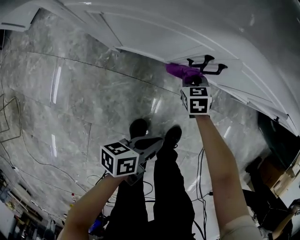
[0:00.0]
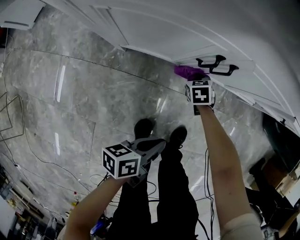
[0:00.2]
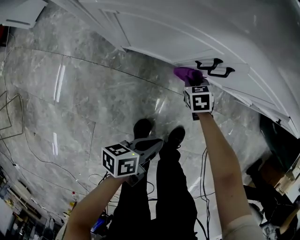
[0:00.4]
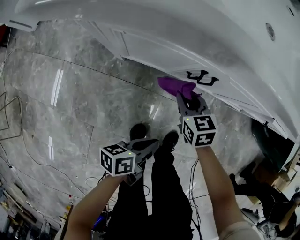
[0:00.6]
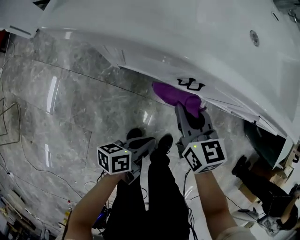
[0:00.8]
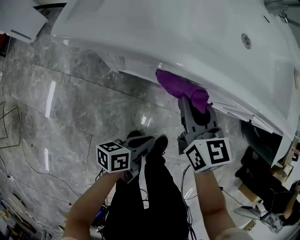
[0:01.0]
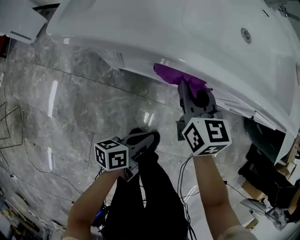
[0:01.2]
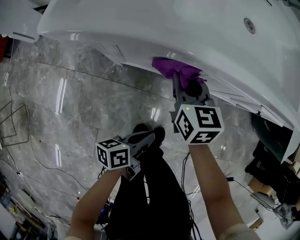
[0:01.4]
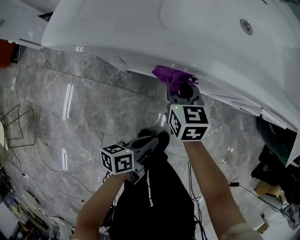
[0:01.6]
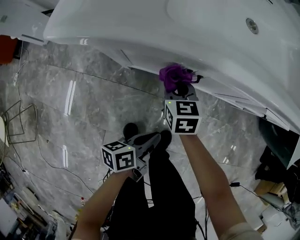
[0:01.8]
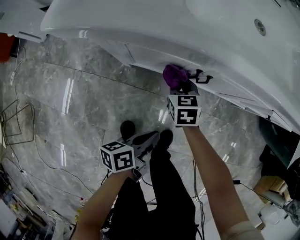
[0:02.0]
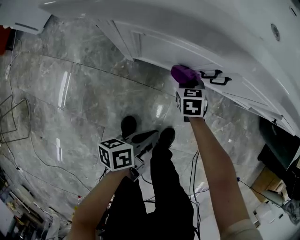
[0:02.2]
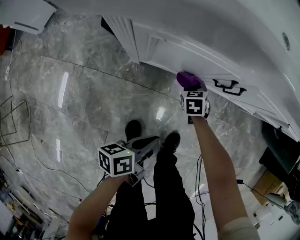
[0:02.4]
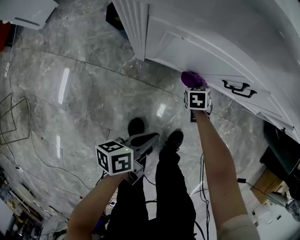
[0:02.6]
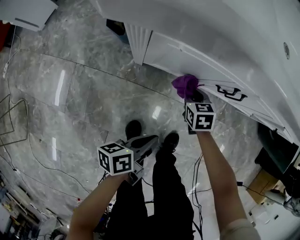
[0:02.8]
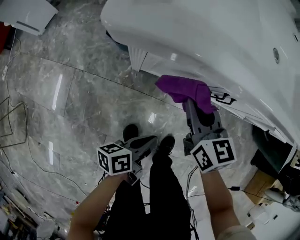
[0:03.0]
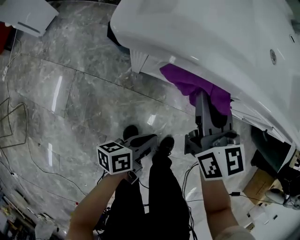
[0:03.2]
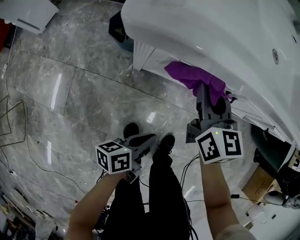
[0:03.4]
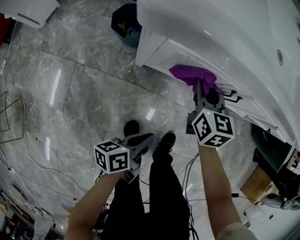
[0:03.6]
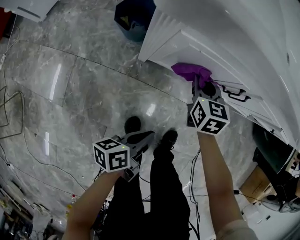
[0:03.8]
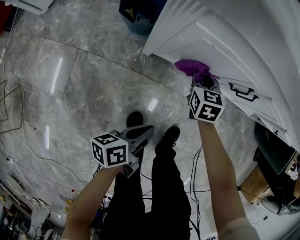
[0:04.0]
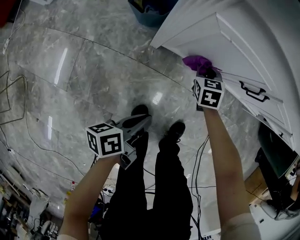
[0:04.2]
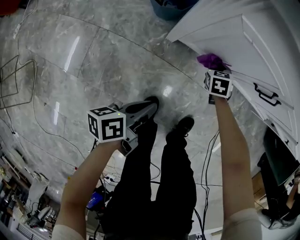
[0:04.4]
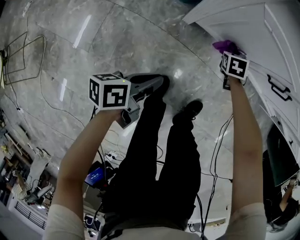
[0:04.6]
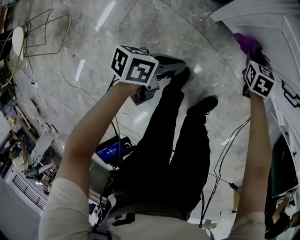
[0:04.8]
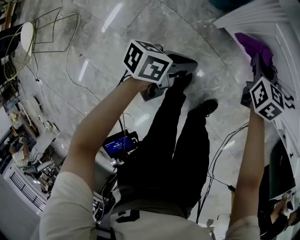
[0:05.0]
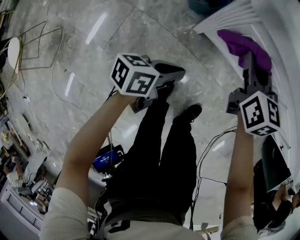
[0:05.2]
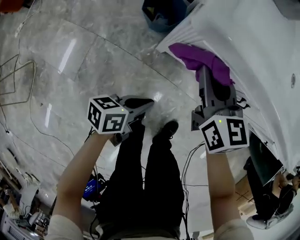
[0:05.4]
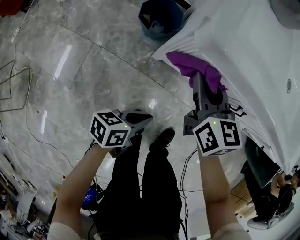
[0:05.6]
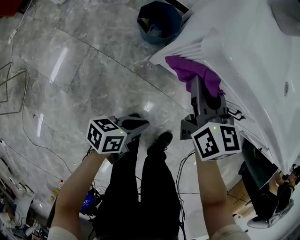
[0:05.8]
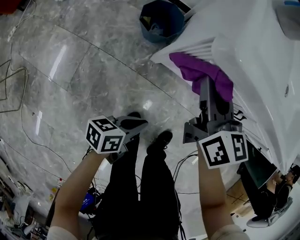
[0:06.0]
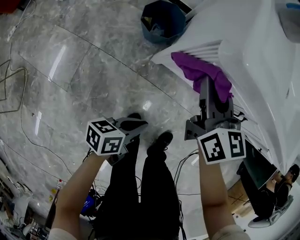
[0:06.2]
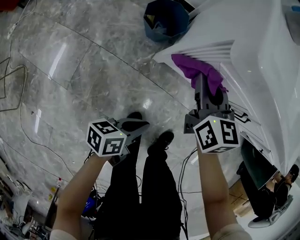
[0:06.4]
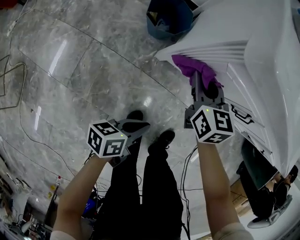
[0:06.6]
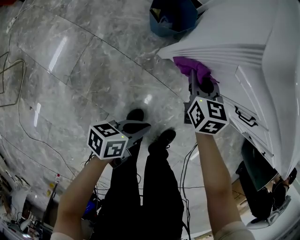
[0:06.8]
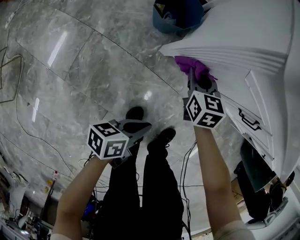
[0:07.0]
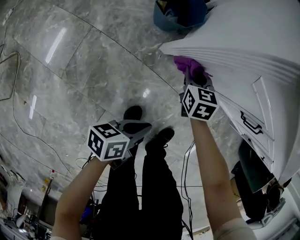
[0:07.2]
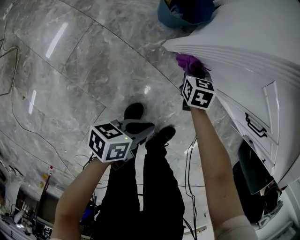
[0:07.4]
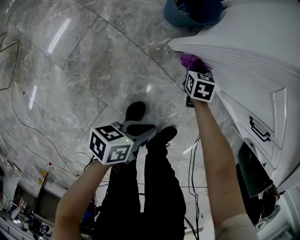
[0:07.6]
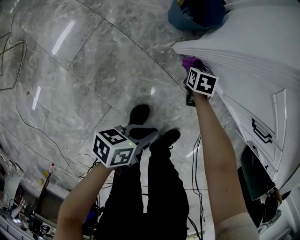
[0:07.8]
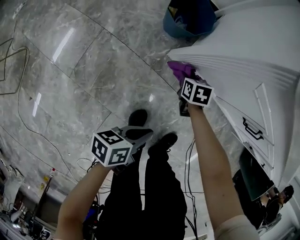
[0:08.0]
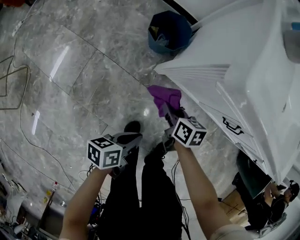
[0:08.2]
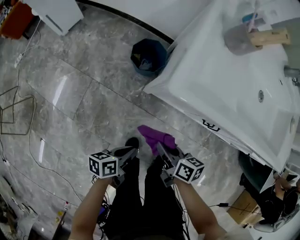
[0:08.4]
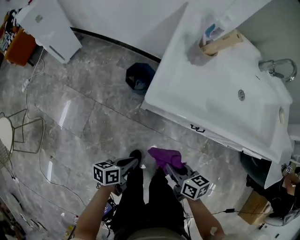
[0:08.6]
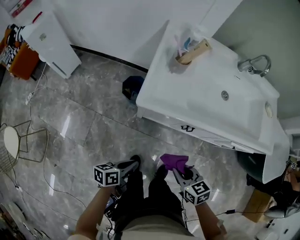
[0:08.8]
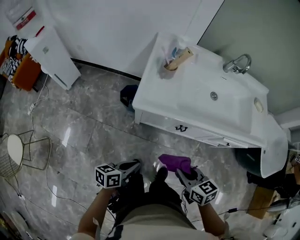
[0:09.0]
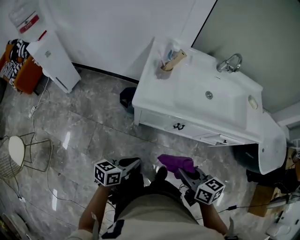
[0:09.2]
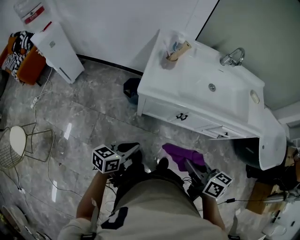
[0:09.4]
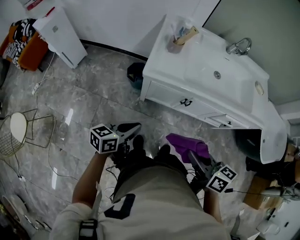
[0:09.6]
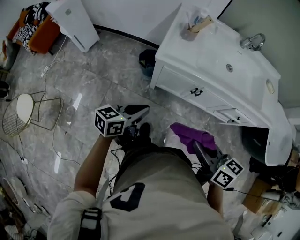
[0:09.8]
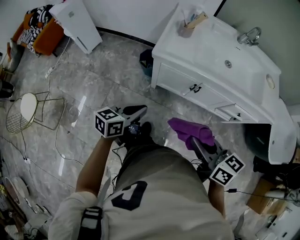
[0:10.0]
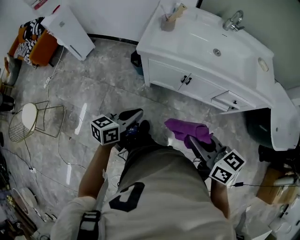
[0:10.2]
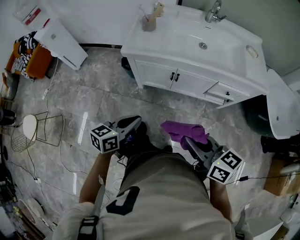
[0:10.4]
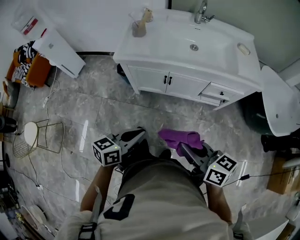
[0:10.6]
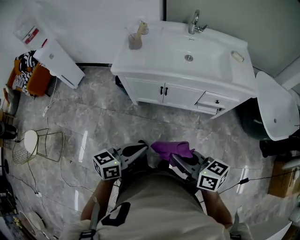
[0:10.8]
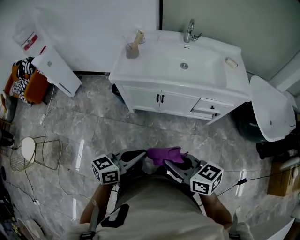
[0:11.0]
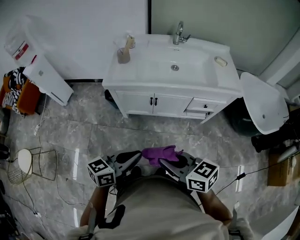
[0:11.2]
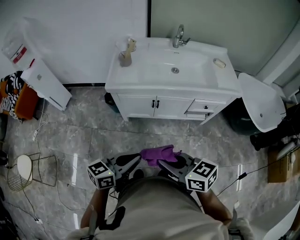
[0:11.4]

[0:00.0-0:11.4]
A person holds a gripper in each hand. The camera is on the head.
0:00.0 to 0:01.4: The left gripper shifts some 10 cm upward, while the right gripper swings up and down, roughly 40 cm each way, with 2 reversals, and turns by about 30 degrees.
0:01.4 to 0:02.8: The right gripper travels downward by about 25 cm, and rotates about 30 degrees; the left gripper shifts roughly 10 cm to the left and downward.
0:02.8 to 0:04.2: The left gripper heads to the left, covering about 10 cm; the right gripper is displaced to the left by roughly 5 cm, and goes upward and returns, about 30 cm each way.
0:04.2 to 0:05.6: The right gripper travels upward by some 25 cm, and rotates about 30 degrees; the left gripper travels upward by about 5 cm, and rotates approximately 20 degrees.
0:05.6 to 0:07.2: The right gripper travels downward by roughly 25 cm, and turns by roughly 20 degrees. The left gripper shifts roughly 10 cm downward.
0:07.2 to 0:08.6: The left gripper travels upward by some 20 cm. The right gripper shifts approximately 35 cm upward and backward, and rotates roughly 30 degrees.
0:08.6 to 0:10.0: The right gripper moves upward and backward, some 35 cm, and changes its angle by about 20 degrees. The left gripper travels upward by about 25 cm, and turns by some 30 degrees.
0:10.0 to 0:11.4: The right gripper heads backward, covering roughly 10 cm, and travels to the right and back again, some 15 cm each way. Meanwhile the left gripper heads to the right, backward and upward, covering approximately 25 cm, and turns by approximately 20 degrees.

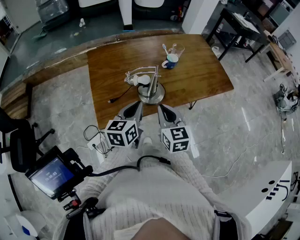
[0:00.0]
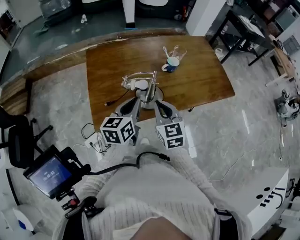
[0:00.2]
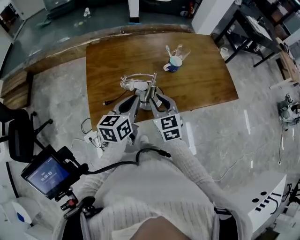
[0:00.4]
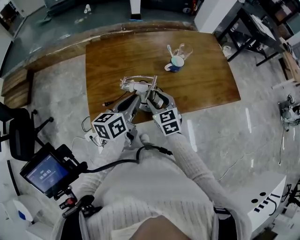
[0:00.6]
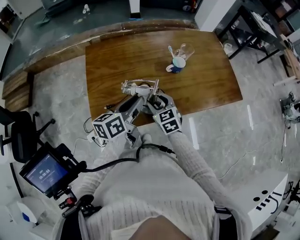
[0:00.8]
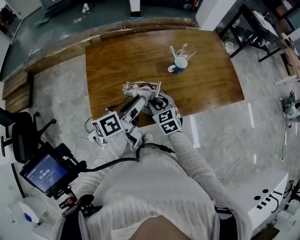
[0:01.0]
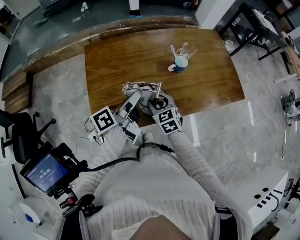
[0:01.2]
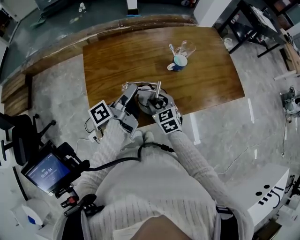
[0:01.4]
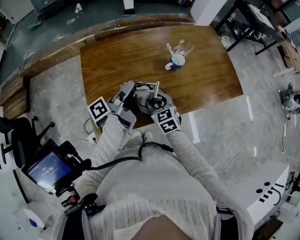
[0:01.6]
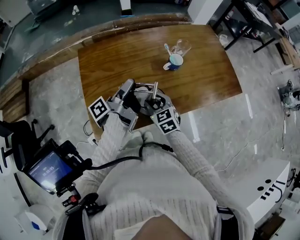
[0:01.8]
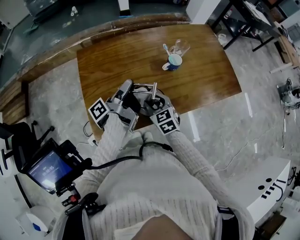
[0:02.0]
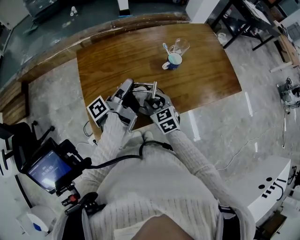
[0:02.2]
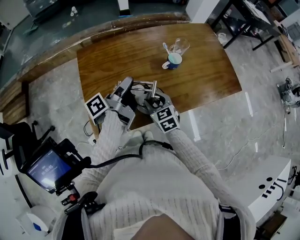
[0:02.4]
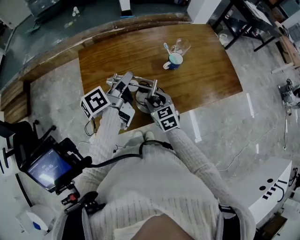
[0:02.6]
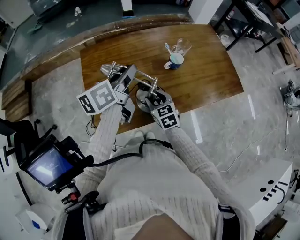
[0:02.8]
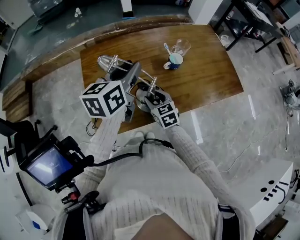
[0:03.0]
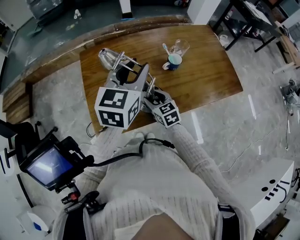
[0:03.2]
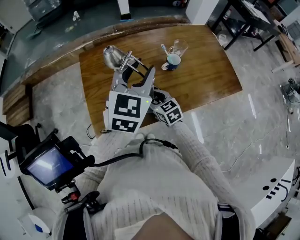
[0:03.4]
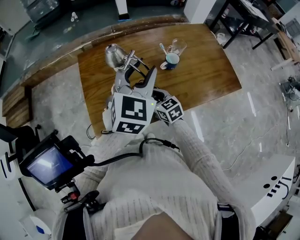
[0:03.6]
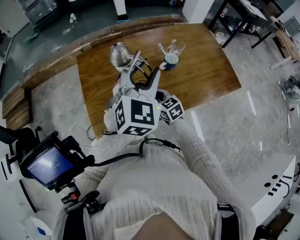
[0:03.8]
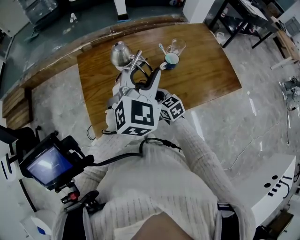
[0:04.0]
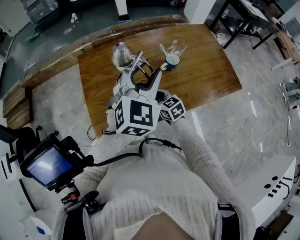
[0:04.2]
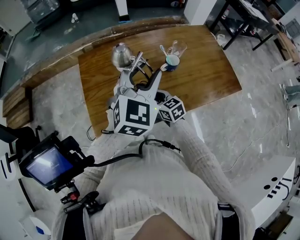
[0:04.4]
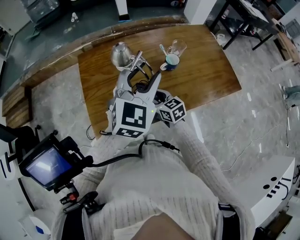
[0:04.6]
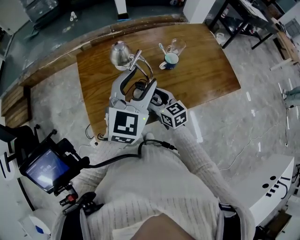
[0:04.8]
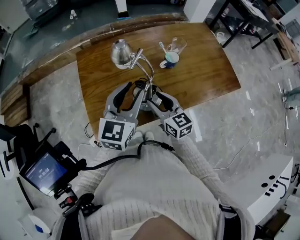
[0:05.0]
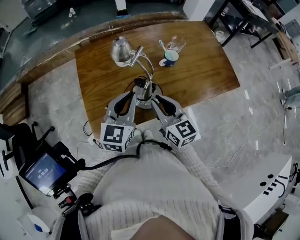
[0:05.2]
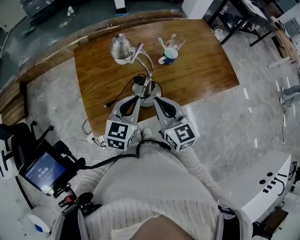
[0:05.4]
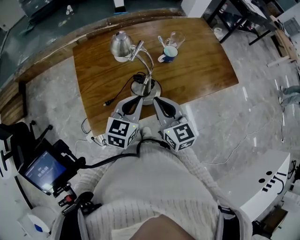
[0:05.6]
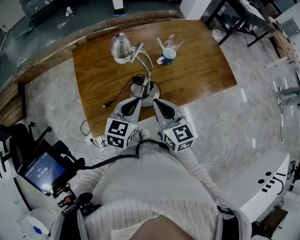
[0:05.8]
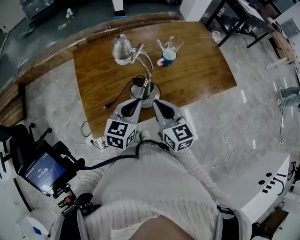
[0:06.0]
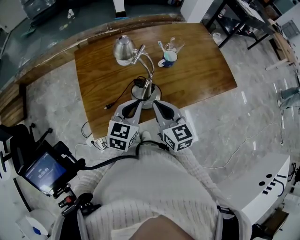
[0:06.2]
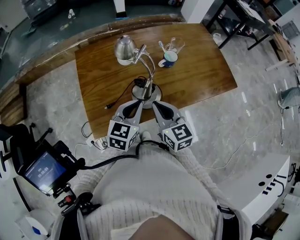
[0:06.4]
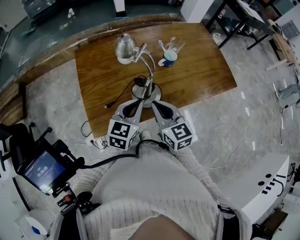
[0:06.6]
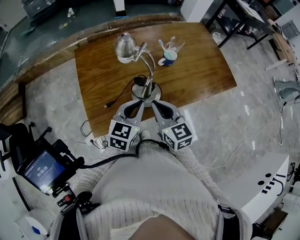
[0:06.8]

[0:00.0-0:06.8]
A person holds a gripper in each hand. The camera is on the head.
0:00.0 to 0:01.4: The left gripper heads forward, covering roughly 15 cm, rolls counterclockwise, seen from behind, by some 60 degrees, and opens up; the right gripper heads forward and downward, covering approximately 20 cm, rotates approximately 20 degrees, and opens its fingers.
0:01.4 to 0:02.8: The left gripper heads upward, covering about 10 cm, and rotates around the line of its fingers by about 40 degrees, clockwise from behind.
0:02.8 to 0:04.0: The left gripper goes approximately 10 cm to the right, upward and backward, and rolls clockwise, seen from behind, by about 70 degrees.
0:04.0 to 0:05.4: The right gripper goes some 15 cm upward and backward, swivels approximately 30 degrees, and closes. Meanwhile the left gripper goes roughly 15 cm downward, turns by approximately 30 degrees, and closes.
0:05.4 to 0:06.8: There are only small adjustments of the grippers.

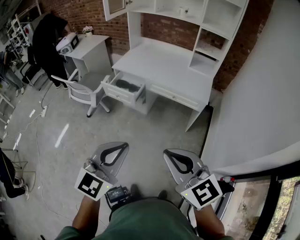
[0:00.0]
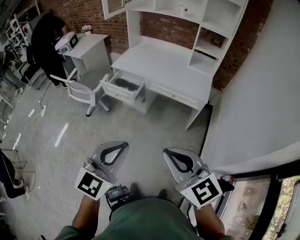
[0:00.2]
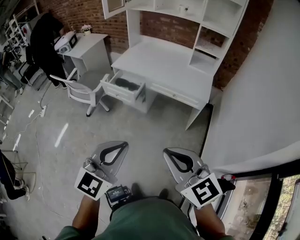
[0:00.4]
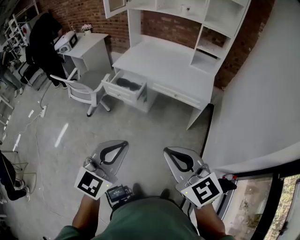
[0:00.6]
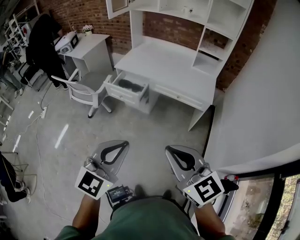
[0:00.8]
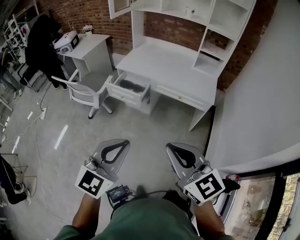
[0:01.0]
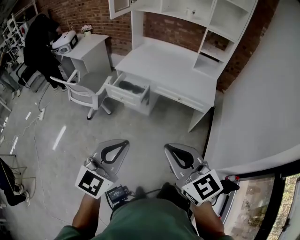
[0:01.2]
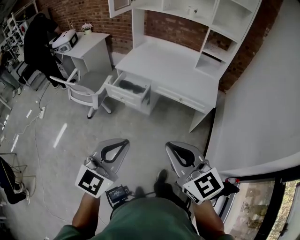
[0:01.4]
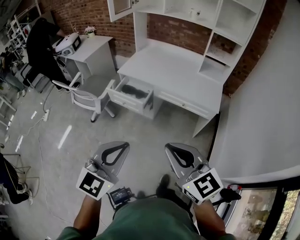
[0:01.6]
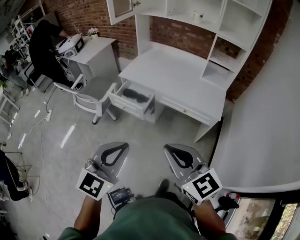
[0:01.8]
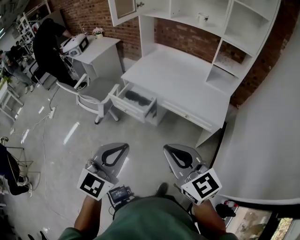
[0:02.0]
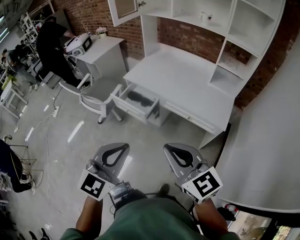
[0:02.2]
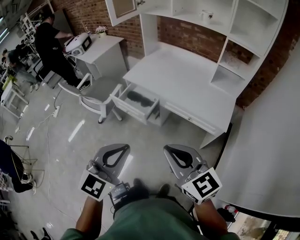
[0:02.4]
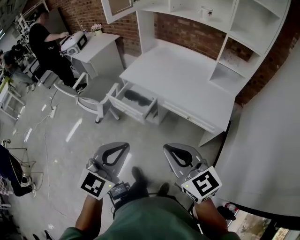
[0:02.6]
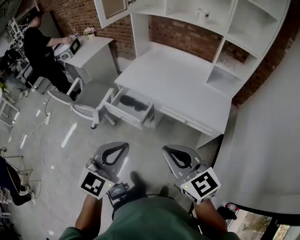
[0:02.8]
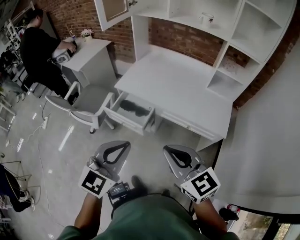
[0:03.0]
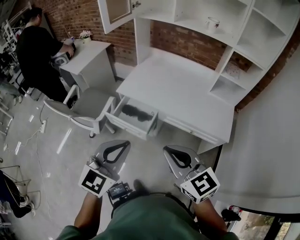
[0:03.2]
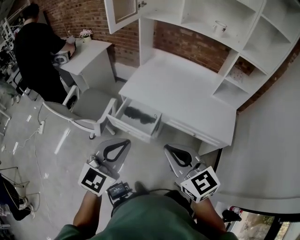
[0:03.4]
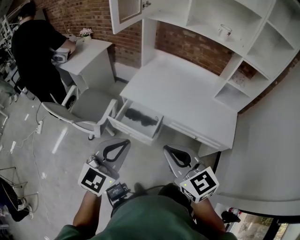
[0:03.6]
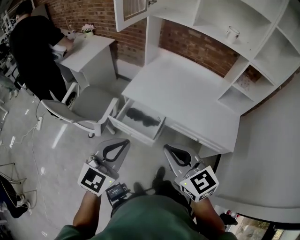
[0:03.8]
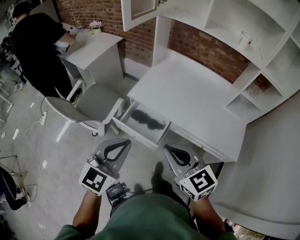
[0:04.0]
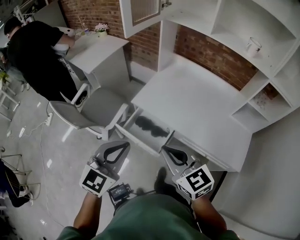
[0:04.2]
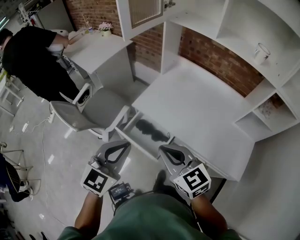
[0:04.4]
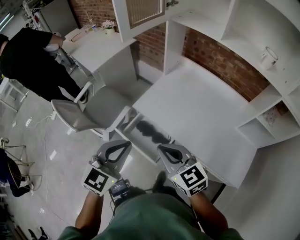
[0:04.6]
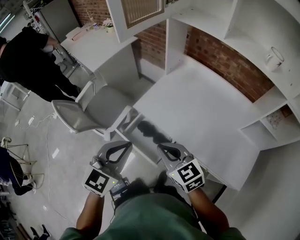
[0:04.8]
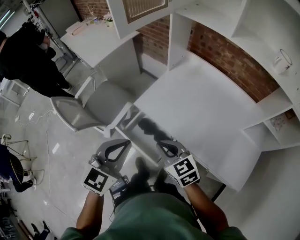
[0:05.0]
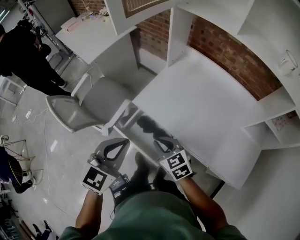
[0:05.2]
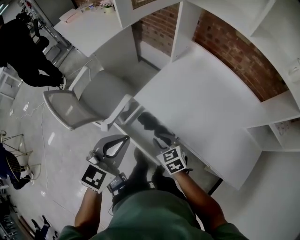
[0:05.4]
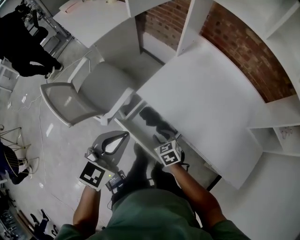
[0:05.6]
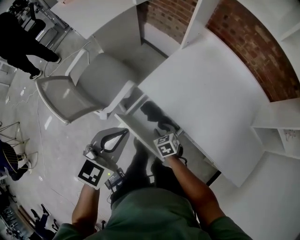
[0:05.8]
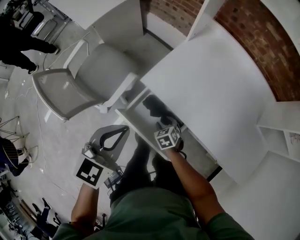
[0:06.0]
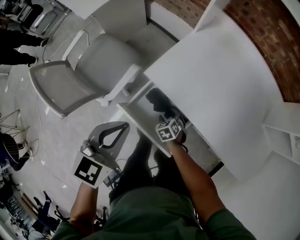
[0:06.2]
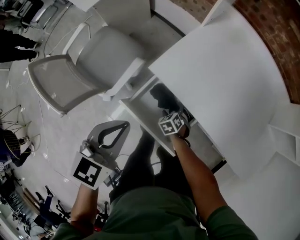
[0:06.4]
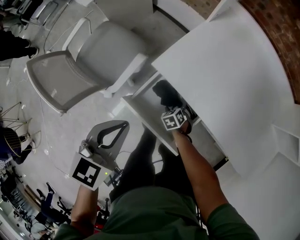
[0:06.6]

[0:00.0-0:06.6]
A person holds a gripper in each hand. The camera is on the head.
0:00.0 to 0:01.6: Both grippers travel together forward and to the left, about 15 cm.
0:01.6 to 0:03.2: The two grippers go some 30 cm forward.
0:03.2 to 0:05.0: The right gripper is displaced forward and downward by approximately 40 cm, and changes its angle by roughly 20 degrees, while the left gripper heads forward, covering some 30 cm.
0:05.0 to 0:06.6: The left gripper moves downward, to the left and forward, approximately 25 cm, and swivels roughly 20 degrees; the right gripper travels downward by about 50 cm, tilts its fingers about 40 degrees downward, and opens up.
